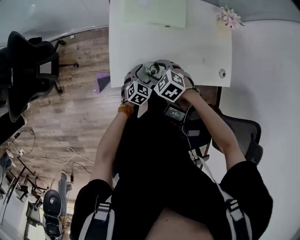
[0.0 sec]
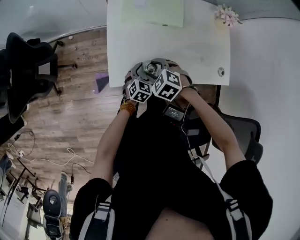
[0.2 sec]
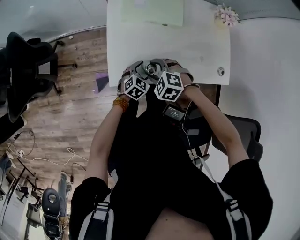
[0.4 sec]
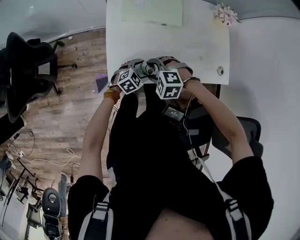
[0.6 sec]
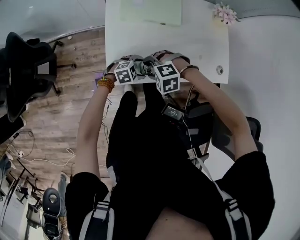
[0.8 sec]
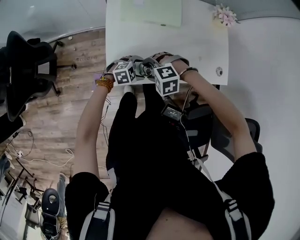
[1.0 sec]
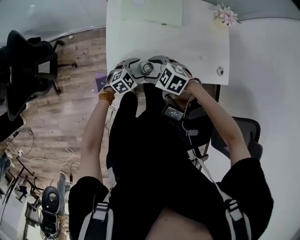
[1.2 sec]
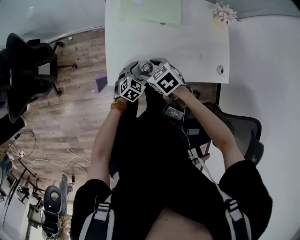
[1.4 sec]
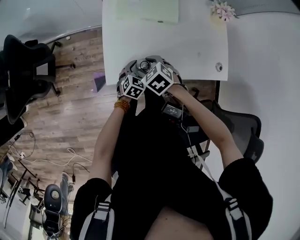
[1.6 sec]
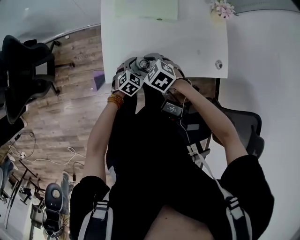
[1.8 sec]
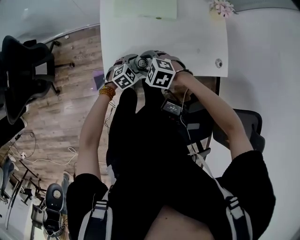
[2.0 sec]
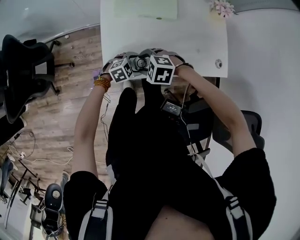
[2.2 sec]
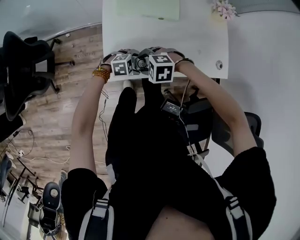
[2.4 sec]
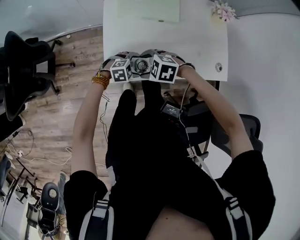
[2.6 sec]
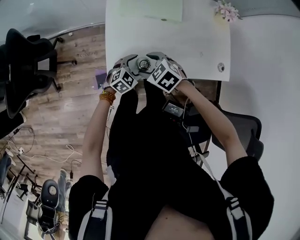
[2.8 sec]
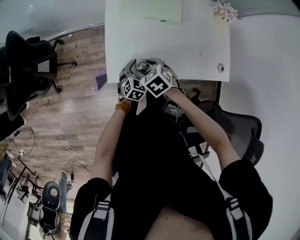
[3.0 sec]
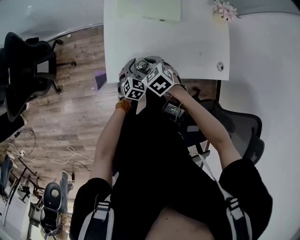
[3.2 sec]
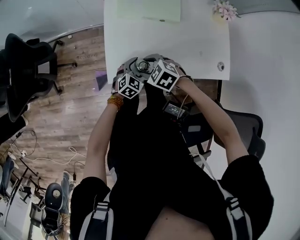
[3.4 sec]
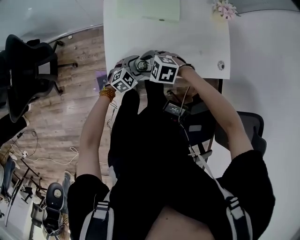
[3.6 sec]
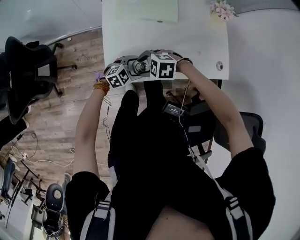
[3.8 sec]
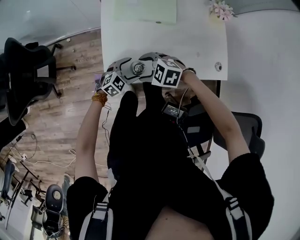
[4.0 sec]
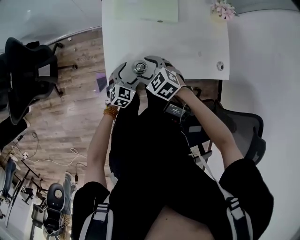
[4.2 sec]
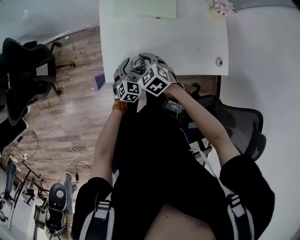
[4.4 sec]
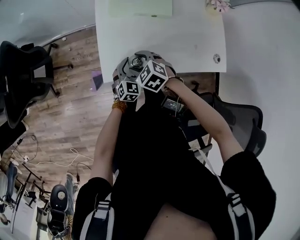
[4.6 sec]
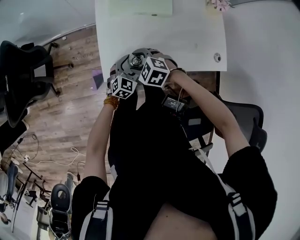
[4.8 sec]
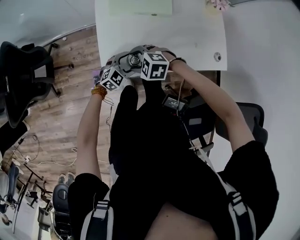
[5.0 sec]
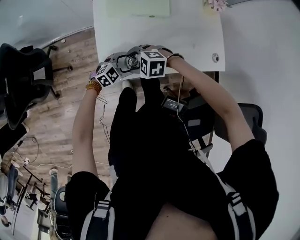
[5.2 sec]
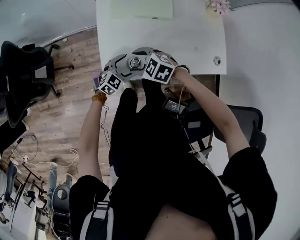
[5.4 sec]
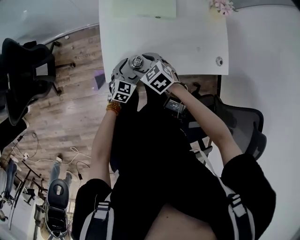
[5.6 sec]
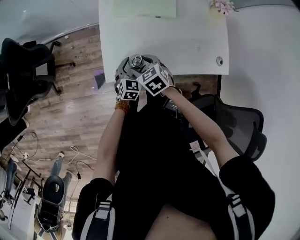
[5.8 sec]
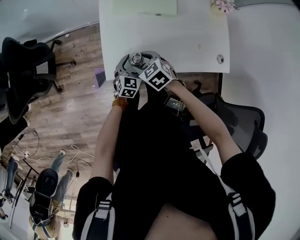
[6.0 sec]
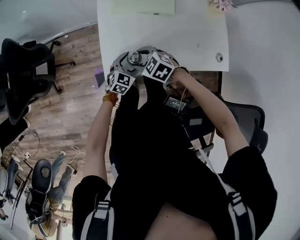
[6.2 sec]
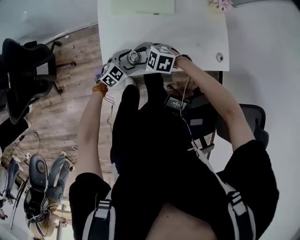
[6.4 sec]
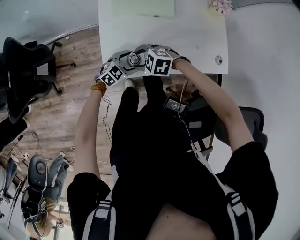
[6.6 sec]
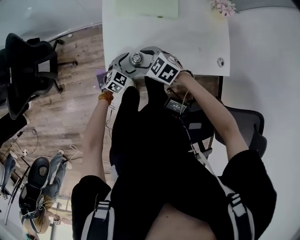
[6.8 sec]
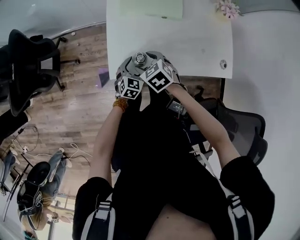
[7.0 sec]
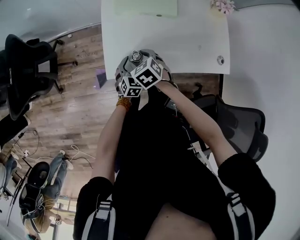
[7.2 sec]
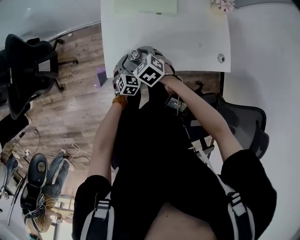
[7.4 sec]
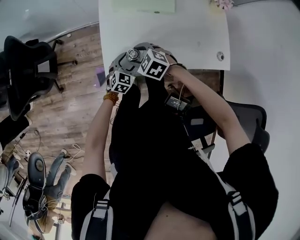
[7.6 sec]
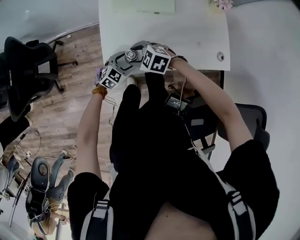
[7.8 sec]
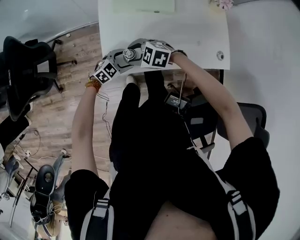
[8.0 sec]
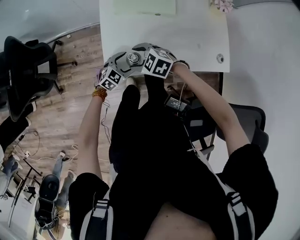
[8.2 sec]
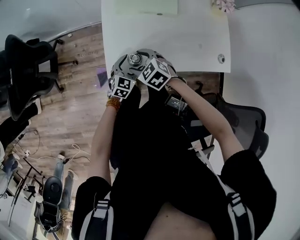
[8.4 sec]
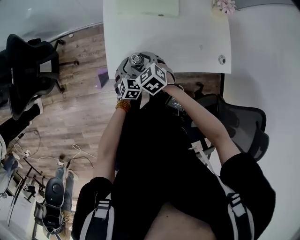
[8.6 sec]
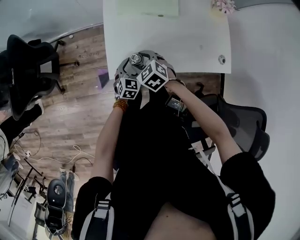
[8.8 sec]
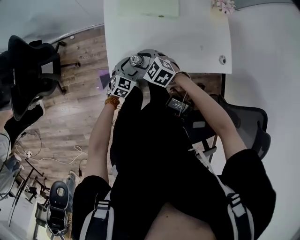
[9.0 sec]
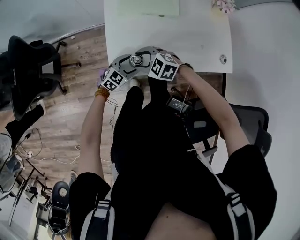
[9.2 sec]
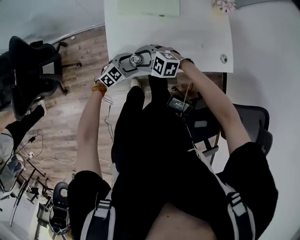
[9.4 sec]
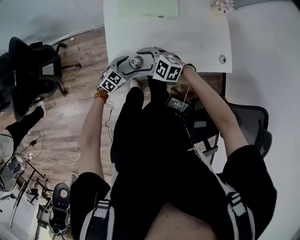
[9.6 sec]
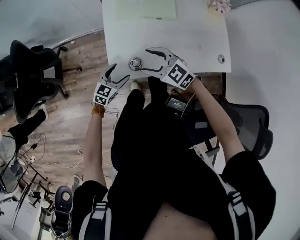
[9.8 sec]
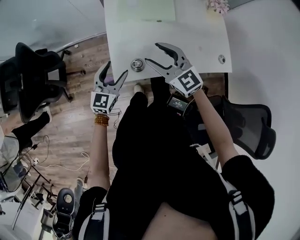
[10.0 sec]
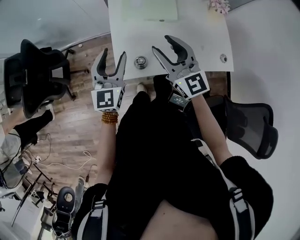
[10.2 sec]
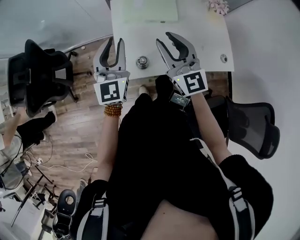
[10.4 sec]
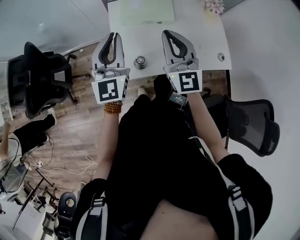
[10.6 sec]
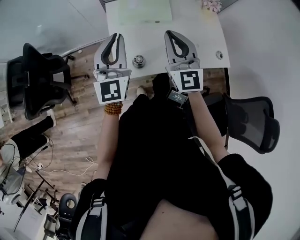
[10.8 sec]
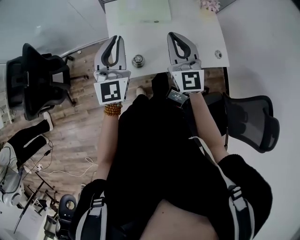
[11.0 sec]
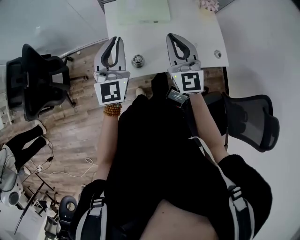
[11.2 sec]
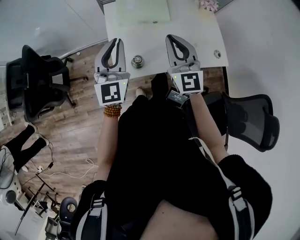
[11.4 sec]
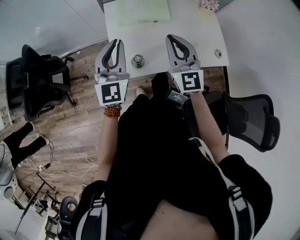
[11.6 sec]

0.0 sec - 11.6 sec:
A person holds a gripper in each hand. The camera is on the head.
0.0 sec - 1.4 sec: The right gripper swivels roughly 20 degrees.
2.8 sec - 4.4 sec: The left gripper changes its angle by roughly 30 degrees.
8.8 sec - 10.2 sec: The two grippers go roughly 25 cm upward. The right gripper points its fingers about 50 degrees further upward; the left gripper points its fingers about 30 degrees further upward.
10.2 sec - 11.6 sec: The right gripper shifts by some 5 cm, turns by about 20 degrees, and closes, while the left gripper moves upward, roughly 5 cm, and closes up.

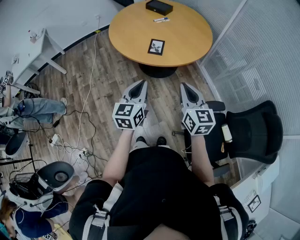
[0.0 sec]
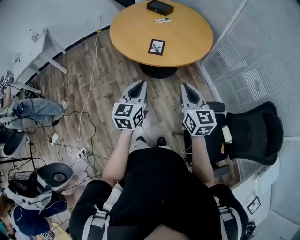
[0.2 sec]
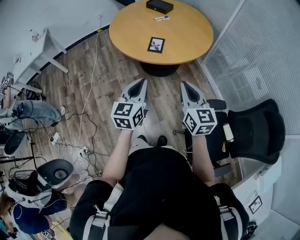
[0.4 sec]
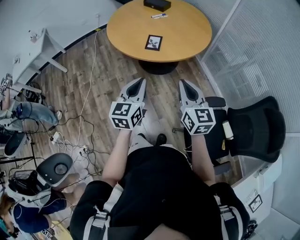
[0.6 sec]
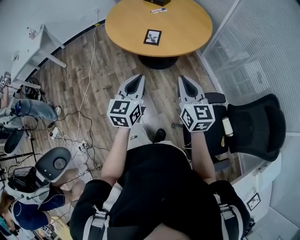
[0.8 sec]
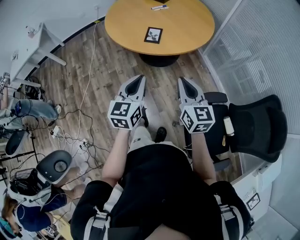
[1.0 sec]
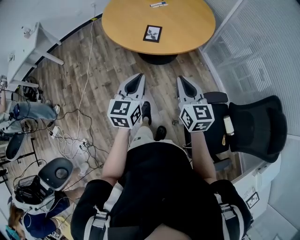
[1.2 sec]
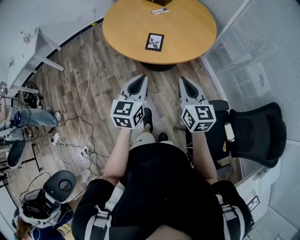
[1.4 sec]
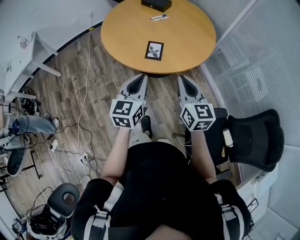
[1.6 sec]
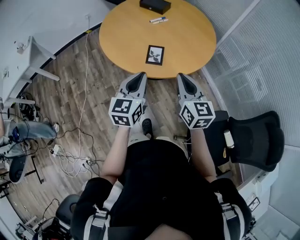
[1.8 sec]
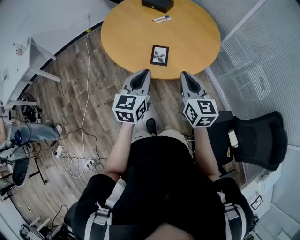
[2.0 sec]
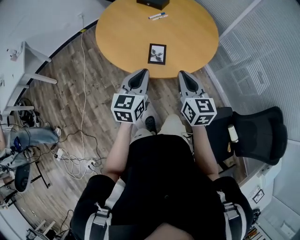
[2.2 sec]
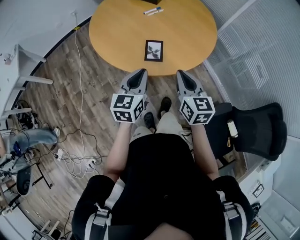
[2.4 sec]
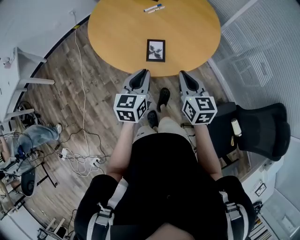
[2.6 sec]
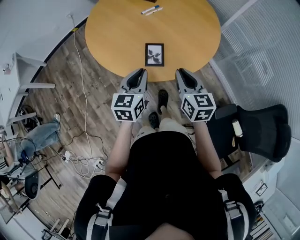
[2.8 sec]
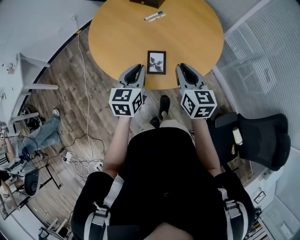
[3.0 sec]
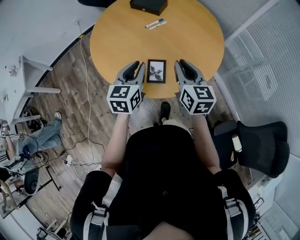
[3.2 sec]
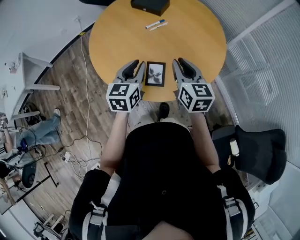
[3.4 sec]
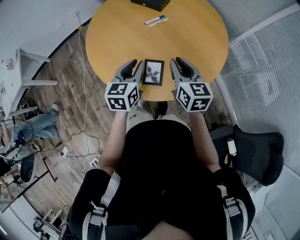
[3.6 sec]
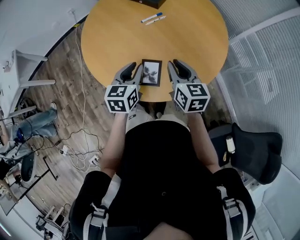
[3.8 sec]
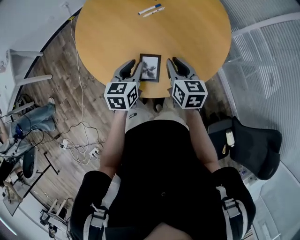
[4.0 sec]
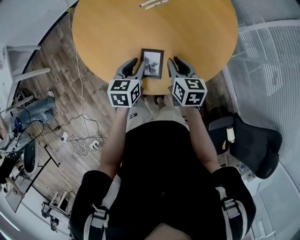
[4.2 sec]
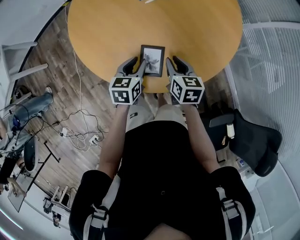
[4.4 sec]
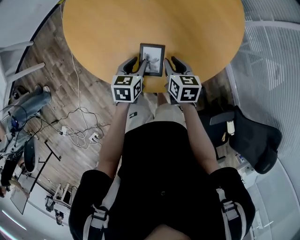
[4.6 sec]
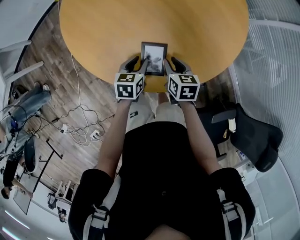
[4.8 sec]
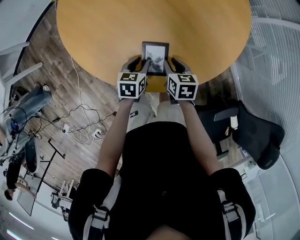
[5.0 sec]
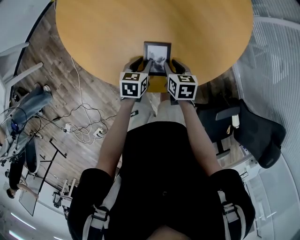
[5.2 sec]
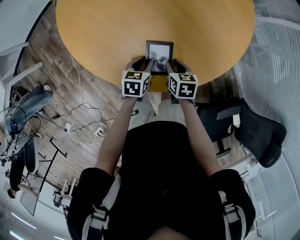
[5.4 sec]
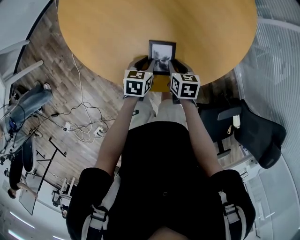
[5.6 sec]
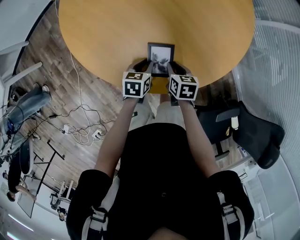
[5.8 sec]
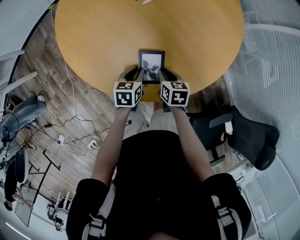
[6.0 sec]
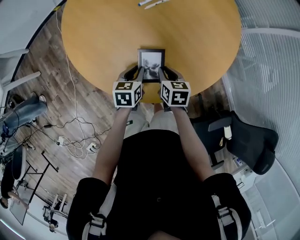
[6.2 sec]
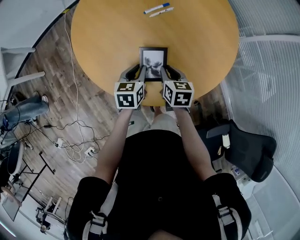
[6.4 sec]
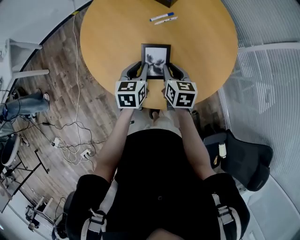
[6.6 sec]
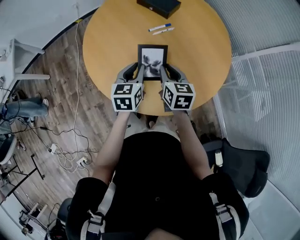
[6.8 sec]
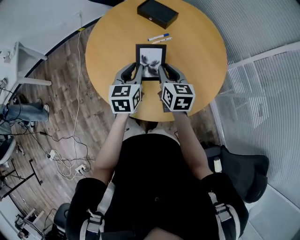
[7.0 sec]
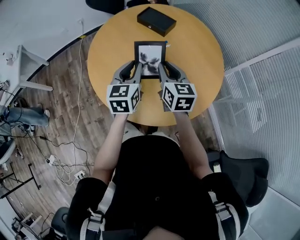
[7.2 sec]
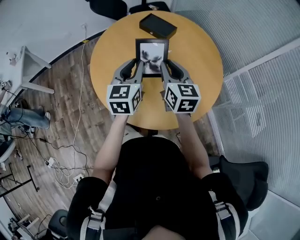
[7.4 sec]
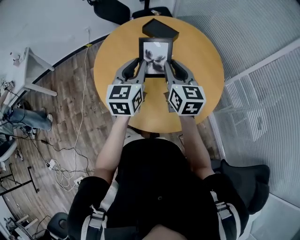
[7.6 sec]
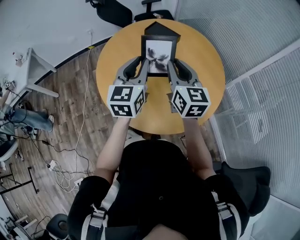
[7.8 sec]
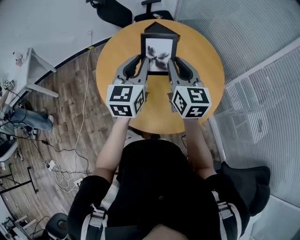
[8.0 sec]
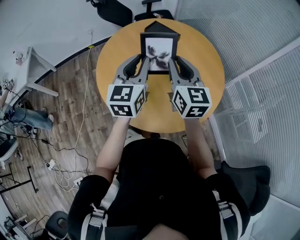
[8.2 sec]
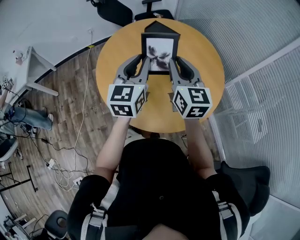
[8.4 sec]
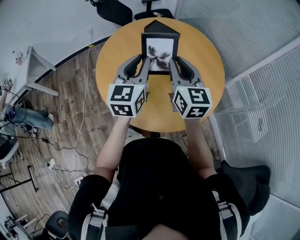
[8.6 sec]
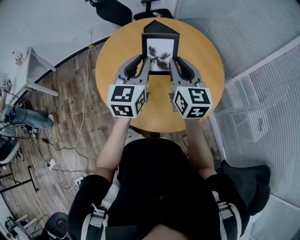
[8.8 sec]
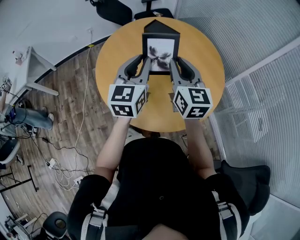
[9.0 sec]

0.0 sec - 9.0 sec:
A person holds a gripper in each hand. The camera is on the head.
0.0 sec - 1.6 sec: Both grippers travel together forward, roughly 15 cm.
1.6 sec - 3.0 sec: Both grippers move forward, about 25 cm.
3.0 sec - 4.4 sec: Both grippers move downward and forward, about 25 cm. The right gripper swivels roughly 30 degrees, while the left gripper swivels about 20 degrees, and opens up.
4.4 sec - 6.0 sec: The left gripper goes about 10 cm downward; the right gripper goes roughly 15 cm downward and to the left.
6.0 sec - 7.6 sec: Both grippers move upward, roughly 40 cm. The left gripper angles its fingers upward, by some 40 degrees. The right gripper tilts its fingers approximately 40 degrees upward.
7.6 sec - 9.0 sec: The grippers make only small movements.

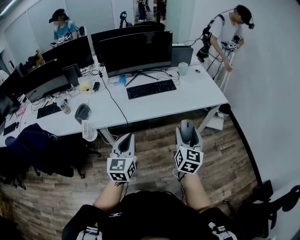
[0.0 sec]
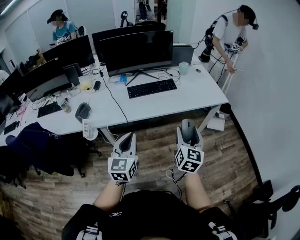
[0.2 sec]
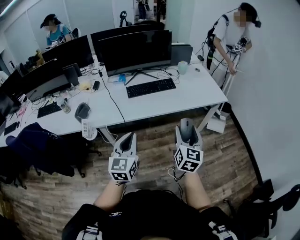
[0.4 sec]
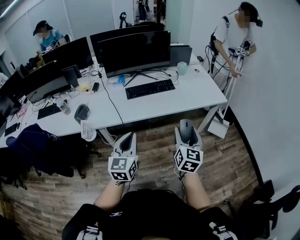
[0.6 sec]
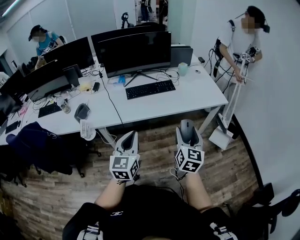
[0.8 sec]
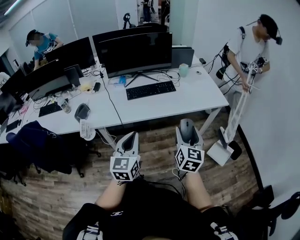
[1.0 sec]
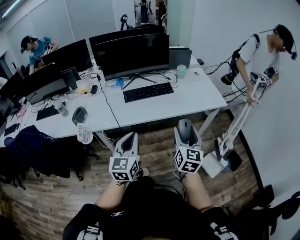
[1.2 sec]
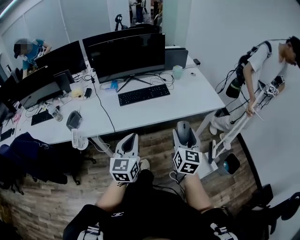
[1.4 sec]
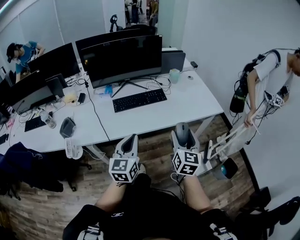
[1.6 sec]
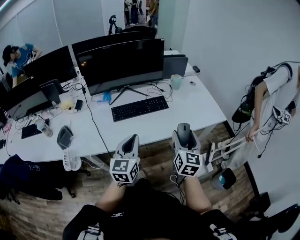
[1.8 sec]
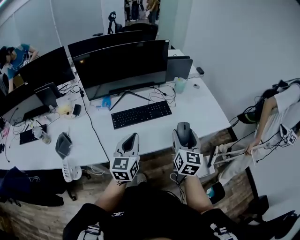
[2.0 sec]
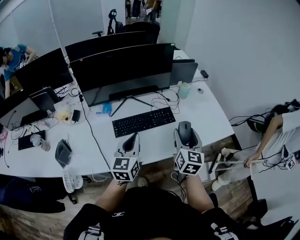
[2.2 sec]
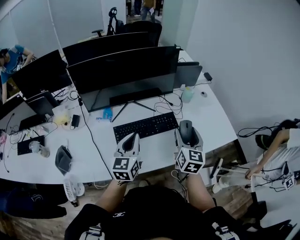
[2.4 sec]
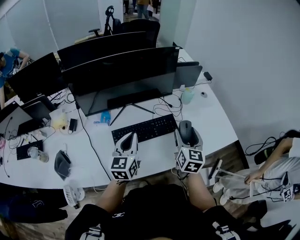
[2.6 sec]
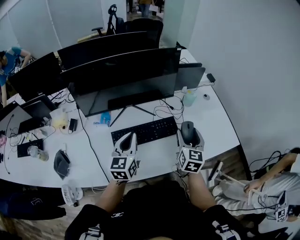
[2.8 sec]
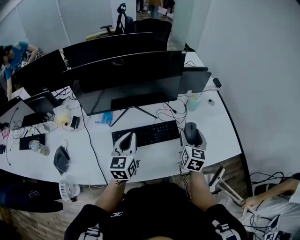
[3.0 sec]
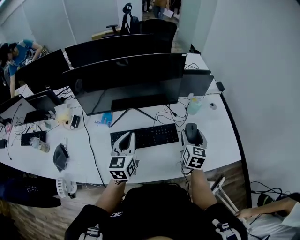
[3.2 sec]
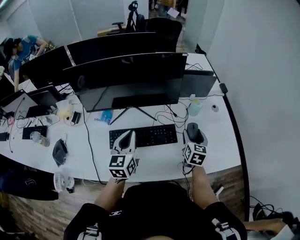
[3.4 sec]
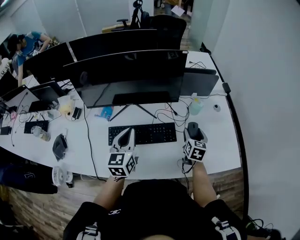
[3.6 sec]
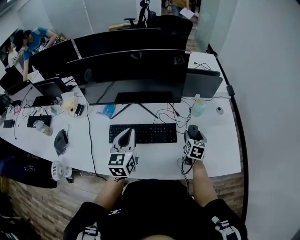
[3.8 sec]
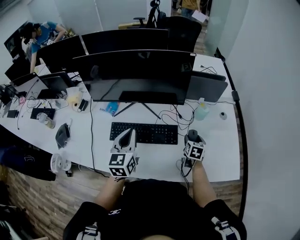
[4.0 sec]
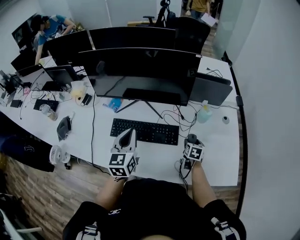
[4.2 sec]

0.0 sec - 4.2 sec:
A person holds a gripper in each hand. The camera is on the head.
0.0 sec - 1.4 sec: The right gripper shifts approximately 5 cm forward. Meanwhile the left gripper goes about 10 cm forward and to the right.
1.4 sec - 2.8 sec: The two grippers travel together, forward, approximately 50 cm.
2.8 sec - 4.2 sec: The left gripper goes about 10 cm to the right, and swivels about 20 degrees, while the right gripper moves downward, forward and to the right, approximately 30 cm, and points its fingers roughly 30 degrees further downward.
